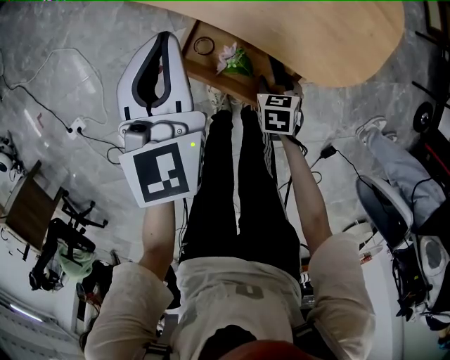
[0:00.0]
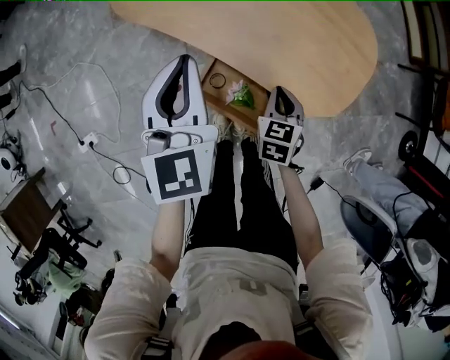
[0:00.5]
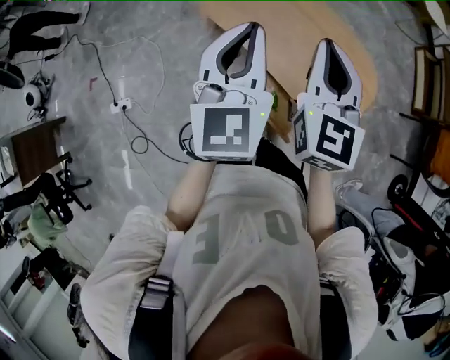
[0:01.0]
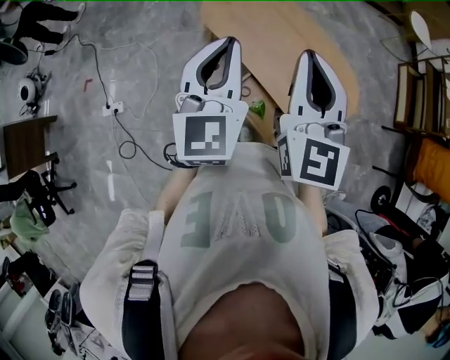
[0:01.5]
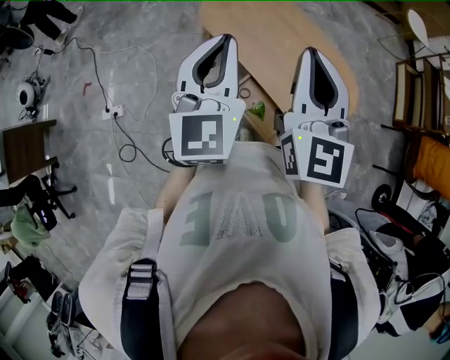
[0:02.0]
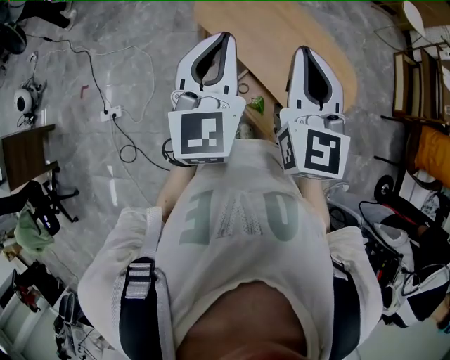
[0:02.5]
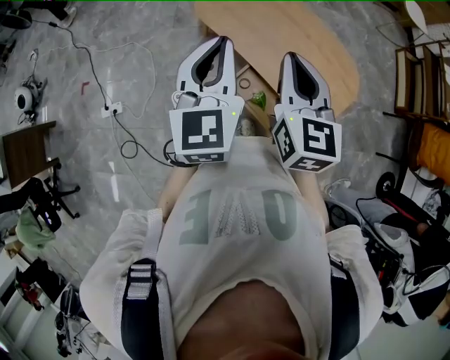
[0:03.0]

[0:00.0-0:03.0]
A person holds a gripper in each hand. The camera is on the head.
0:00.0 to 0:01.5: The right gripper moves upward, roughly 70 cm, angles its fingers upward, by roughly 70 degrees, and closes its fingers, while the left gripper goes some 40 cm upward, and turns by approximately 20 degrees.
0:01.5 to 0:03.0: The right gripper travels downward by some 5 cm.

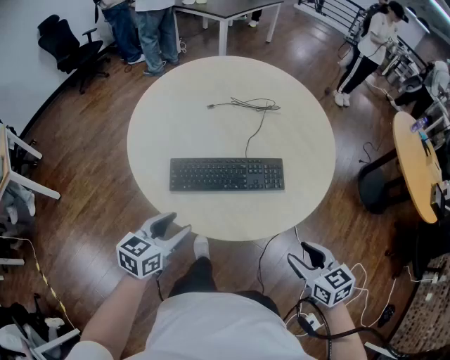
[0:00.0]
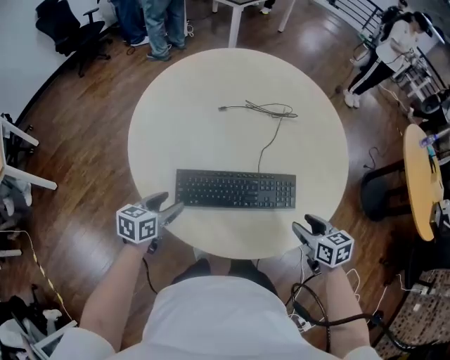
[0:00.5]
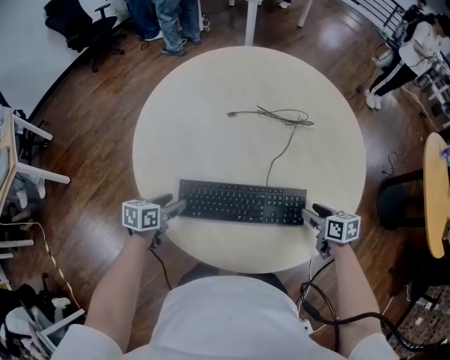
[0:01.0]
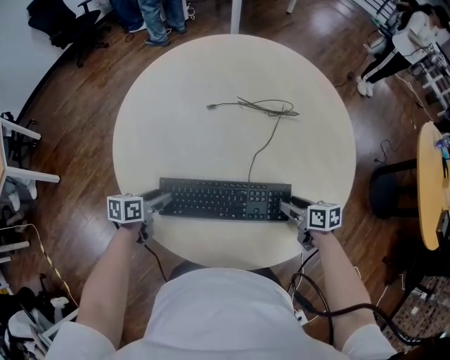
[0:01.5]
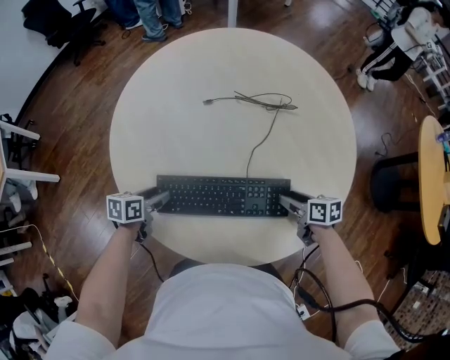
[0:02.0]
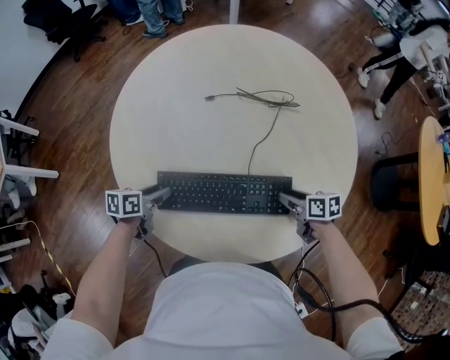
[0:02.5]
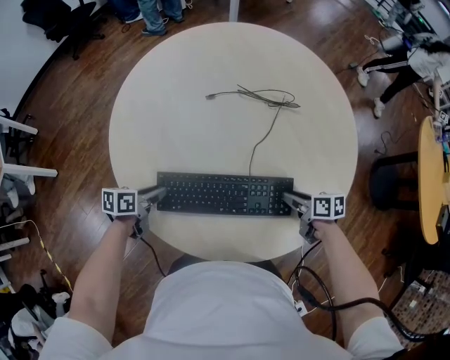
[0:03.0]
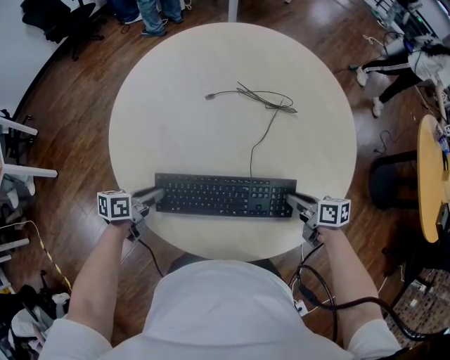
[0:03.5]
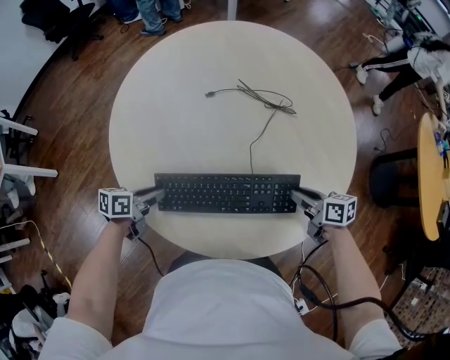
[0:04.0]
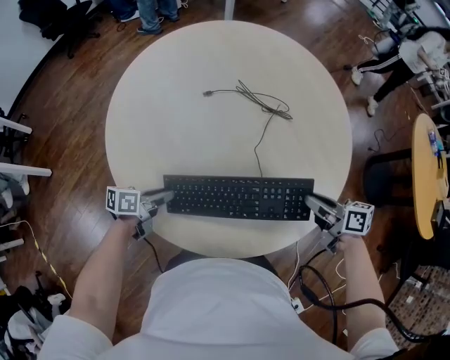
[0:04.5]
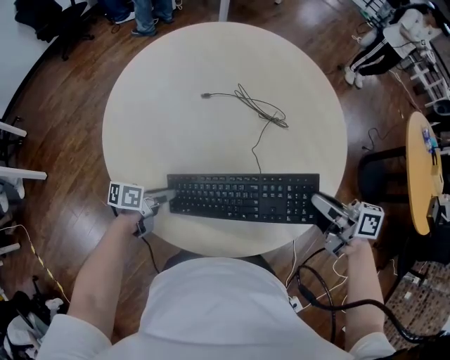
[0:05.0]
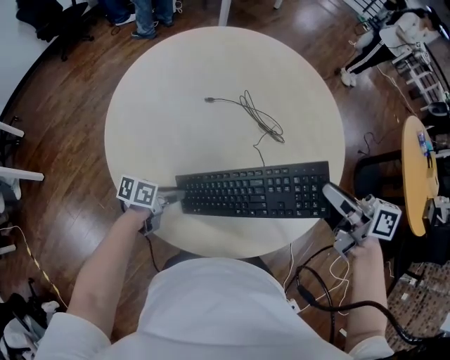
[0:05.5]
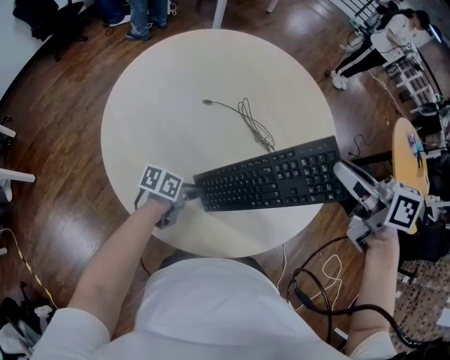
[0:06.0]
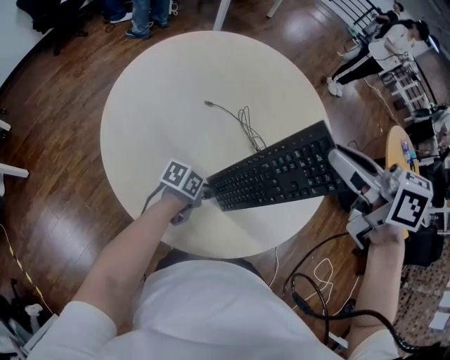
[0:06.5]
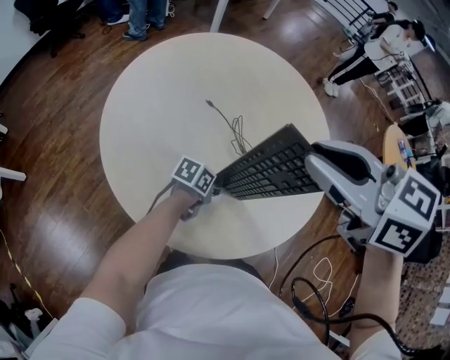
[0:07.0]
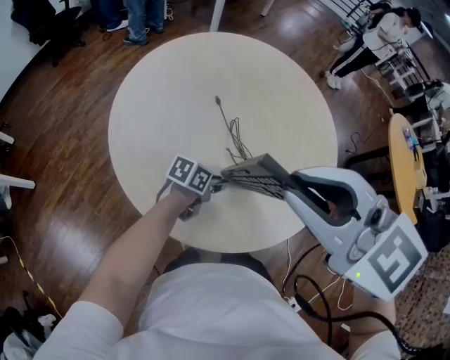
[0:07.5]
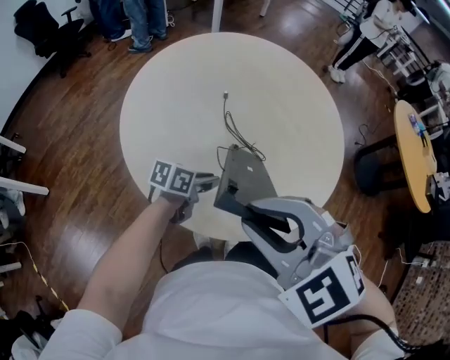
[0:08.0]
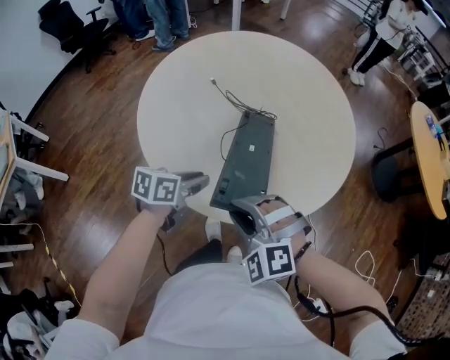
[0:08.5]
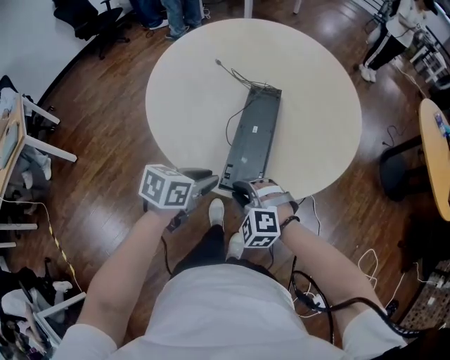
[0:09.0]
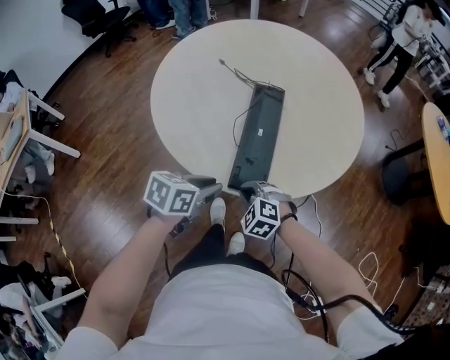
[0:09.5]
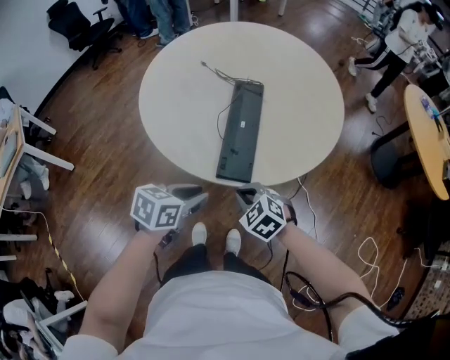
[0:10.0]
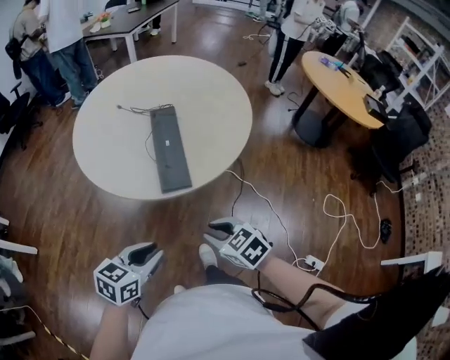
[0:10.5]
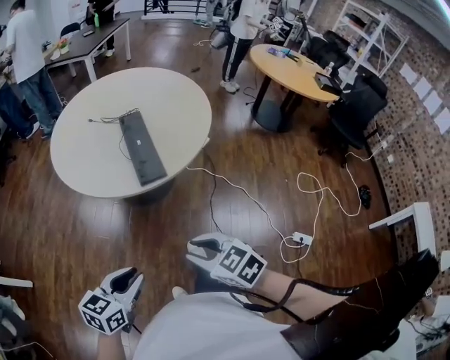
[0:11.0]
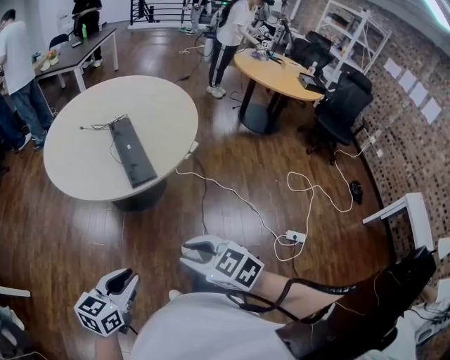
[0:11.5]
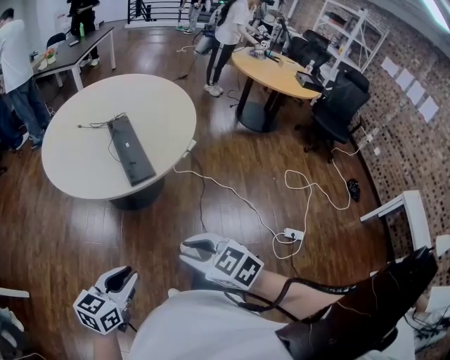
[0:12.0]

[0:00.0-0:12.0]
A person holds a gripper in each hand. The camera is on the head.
0:00.0 to 0:02.0: The right gripper goes roughly 30 cm forward and downward, and swivels some 30 degrees. The left gripper shifts some 25 cm forward, downward and to the left, and rotates some 30 degrees.
0:02.0 to 0:04.0: The right gripper closes up. Meanwhile the left gripper closes its fingers.
0:04.0 to 0:06.0: The left gripper shifts by approximately 15 cm. The right gripper moves upward, approximately 30 cm.
0:06.0 to 0:08.0: The left gripper goes roughly 5 cm upward, while the right gripper moves roughly 5 cm upward and comes back, and rotates around the line of its fingers by roughly 70 degrees, counterclockwise from behind.
0:08.0 to 0:10.0: The left gripper is displaced backward by roughly 20 cm, and swivels about 20 degrees. The right gripper goes about 25 cm downward.
0:10.0 to 0:12.0: The left gripper is displaced backward by approximately 25 cm, and swivels about 30 degrees. The right gripper is displaced backward and upward by some 30 cm, changes its angle by some 40 degrees, and opens its fingers.

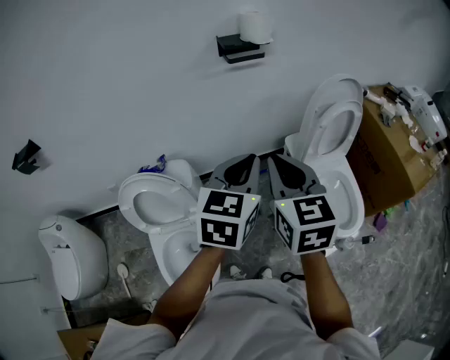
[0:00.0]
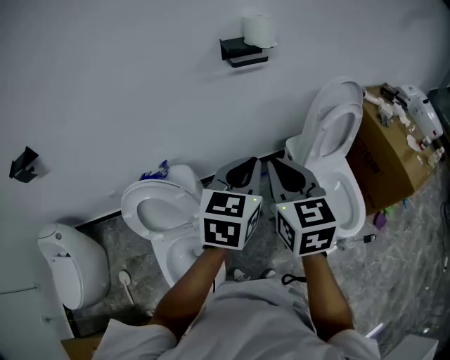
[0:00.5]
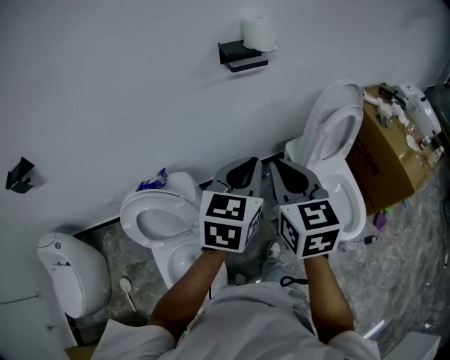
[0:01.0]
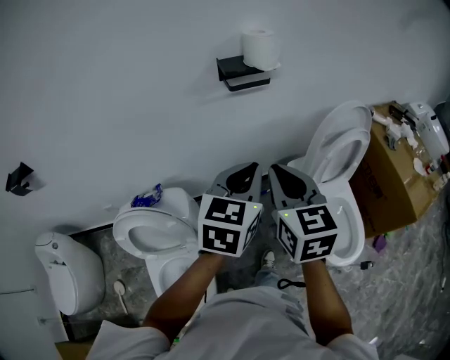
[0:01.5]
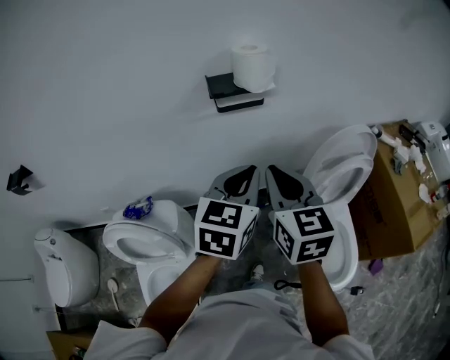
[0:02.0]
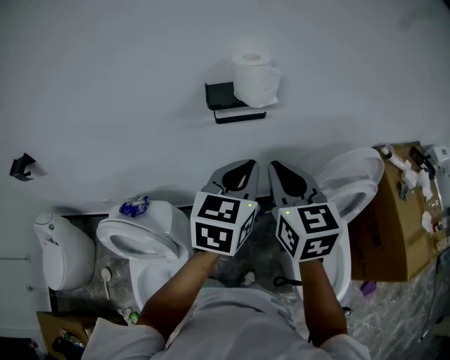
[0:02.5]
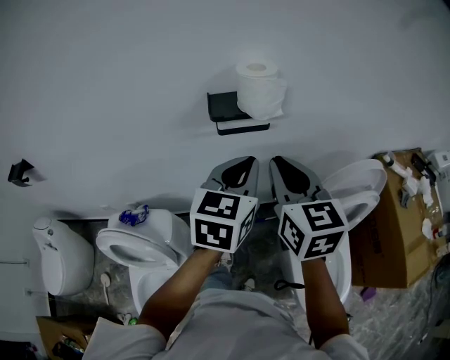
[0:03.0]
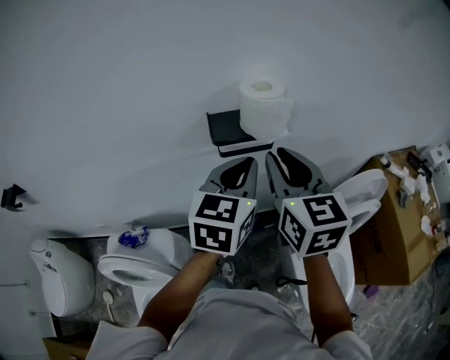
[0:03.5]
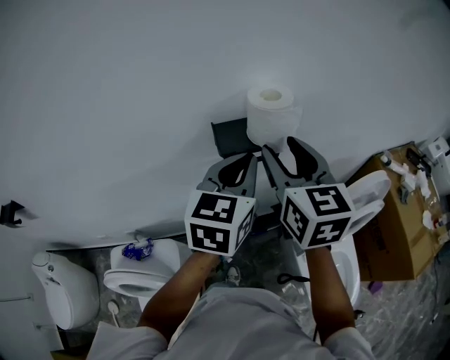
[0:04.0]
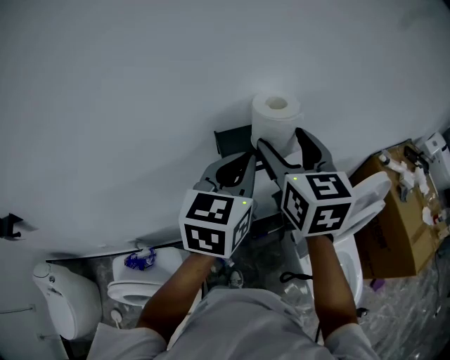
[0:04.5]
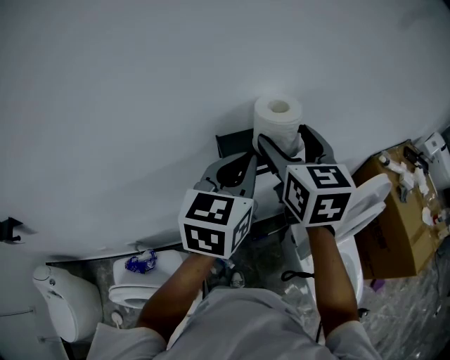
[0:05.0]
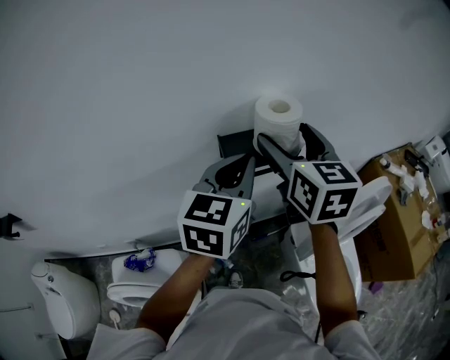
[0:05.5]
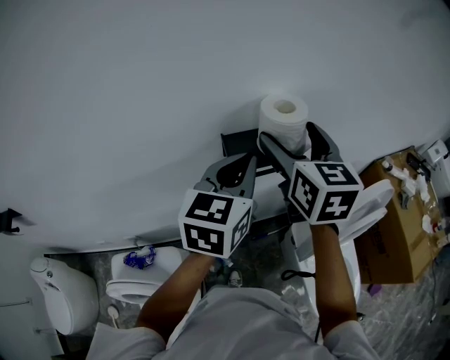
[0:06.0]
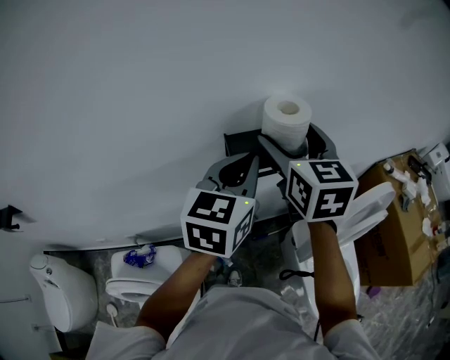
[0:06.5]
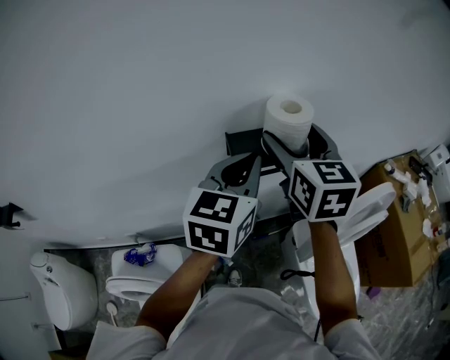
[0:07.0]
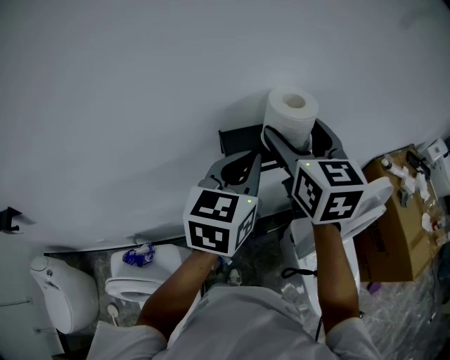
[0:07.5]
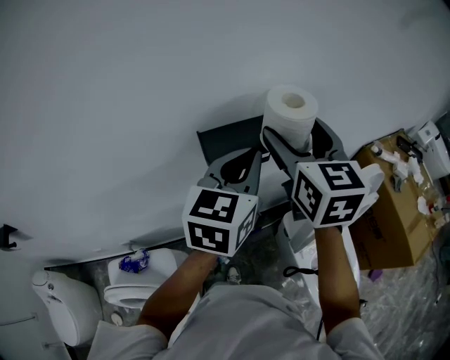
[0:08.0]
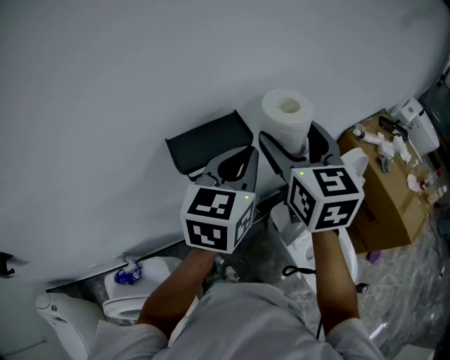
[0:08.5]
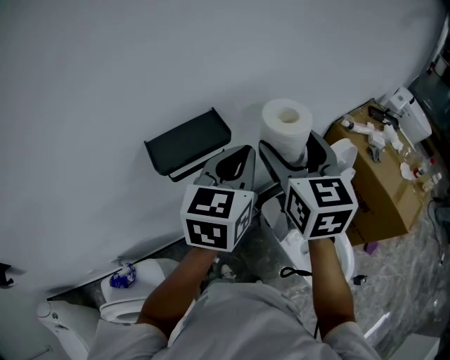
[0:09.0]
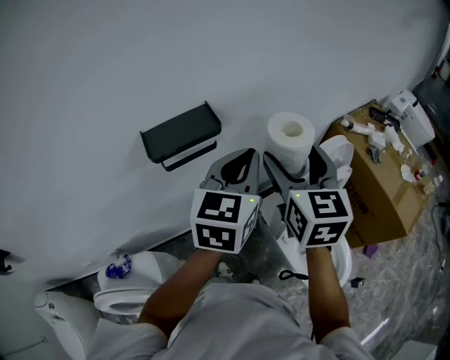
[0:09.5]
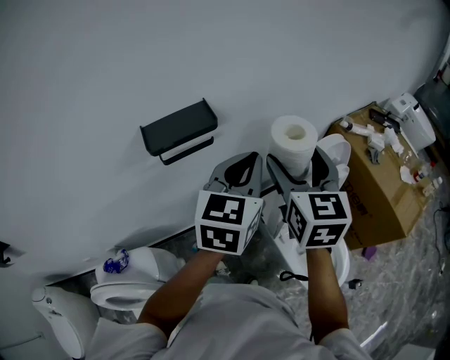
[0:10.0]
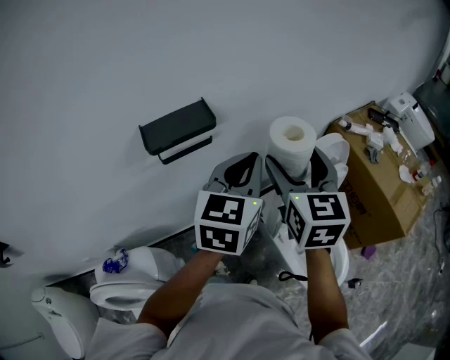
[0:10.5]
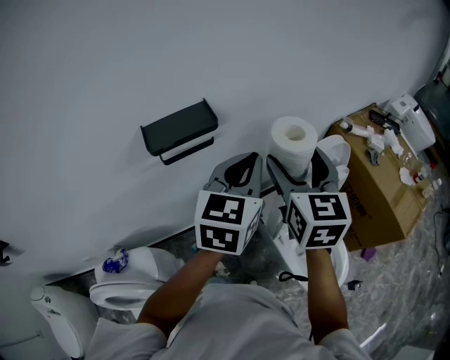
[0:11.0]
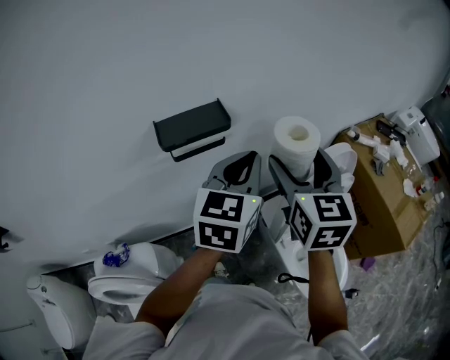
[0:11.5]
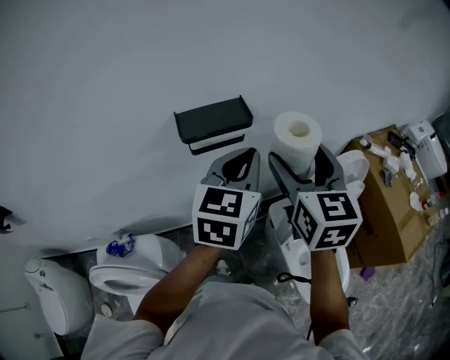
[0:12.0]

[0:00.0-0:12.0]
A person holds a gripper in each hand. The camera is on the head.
0:00.0 to 0:02.0: The grippers both shift forward by some 20 cm.
0:02.0 to 0:04.0: The grippers both shift forward by approximately 20 cm. The right gripper opens its fingers.
0:04.0 to 0:06.0: The right gripper heads forward, covering some 5 cm, and opens up.
0:06.0 to 0:08.0: The grippers both shift to the right by approximately 5 cm.
0:08.0 to 0:10.0: The right gripper heads to the right and downward, covering about 15 cm. The left gripper is displaced to the right by approximately 15 cm.
0:10.0 to 0:12.0: Both grippers move to the left, approximately 5 cm.
